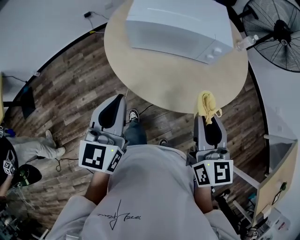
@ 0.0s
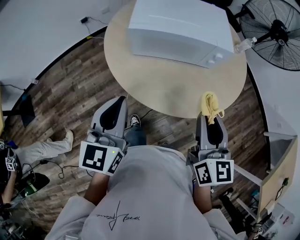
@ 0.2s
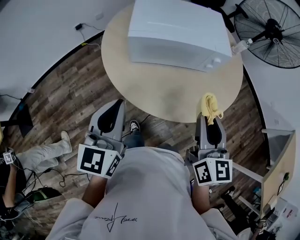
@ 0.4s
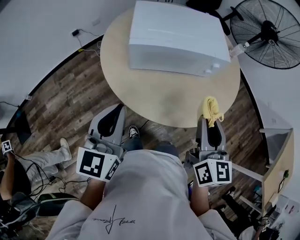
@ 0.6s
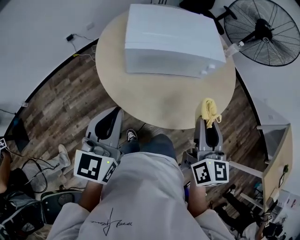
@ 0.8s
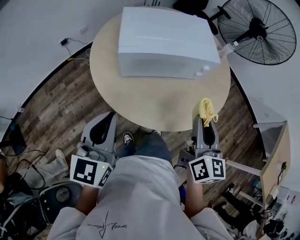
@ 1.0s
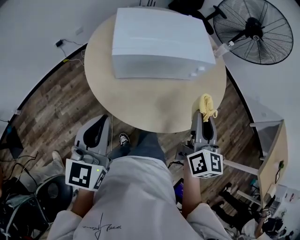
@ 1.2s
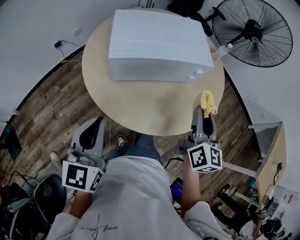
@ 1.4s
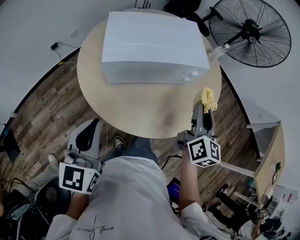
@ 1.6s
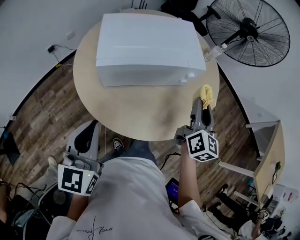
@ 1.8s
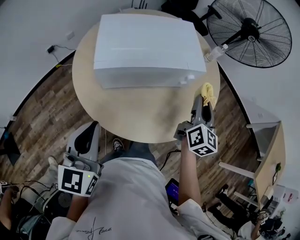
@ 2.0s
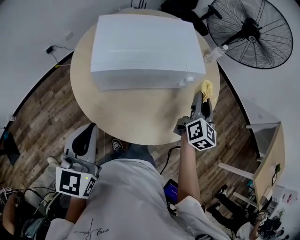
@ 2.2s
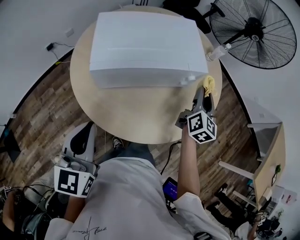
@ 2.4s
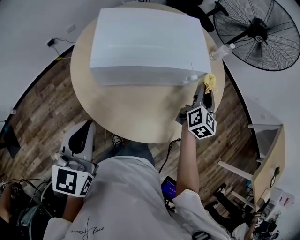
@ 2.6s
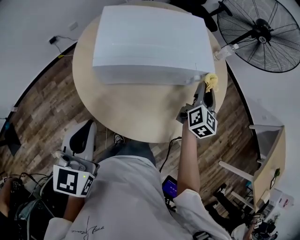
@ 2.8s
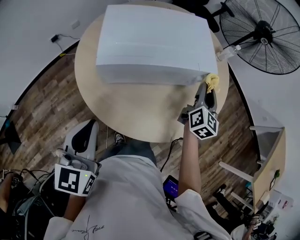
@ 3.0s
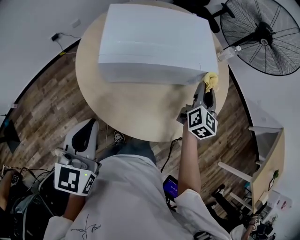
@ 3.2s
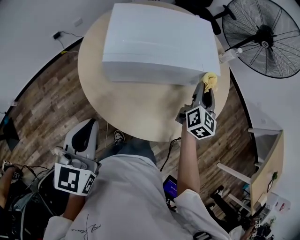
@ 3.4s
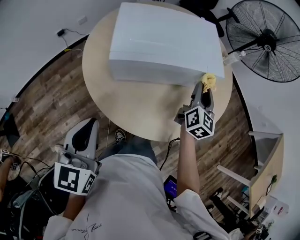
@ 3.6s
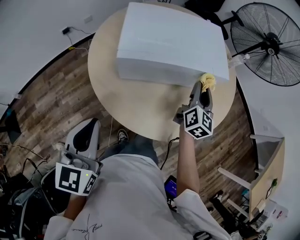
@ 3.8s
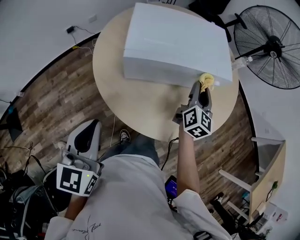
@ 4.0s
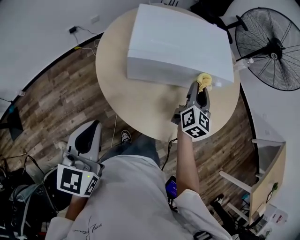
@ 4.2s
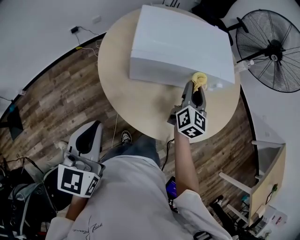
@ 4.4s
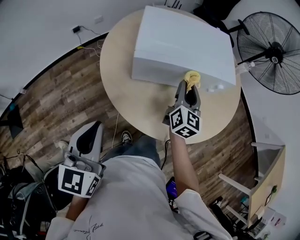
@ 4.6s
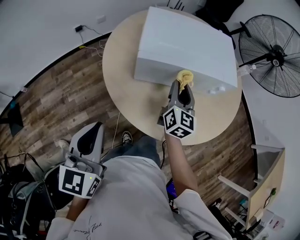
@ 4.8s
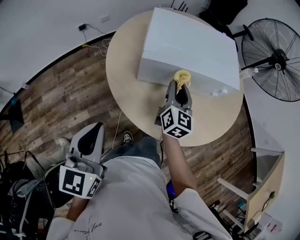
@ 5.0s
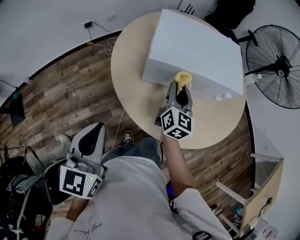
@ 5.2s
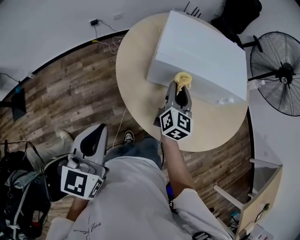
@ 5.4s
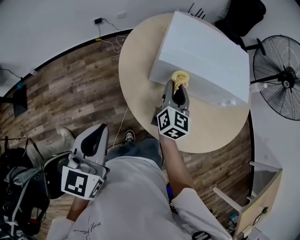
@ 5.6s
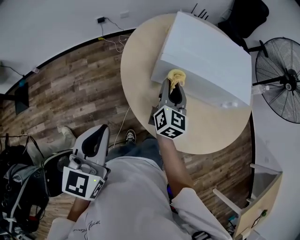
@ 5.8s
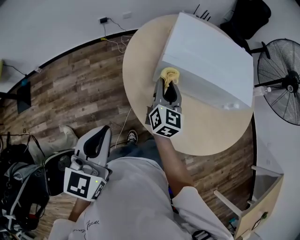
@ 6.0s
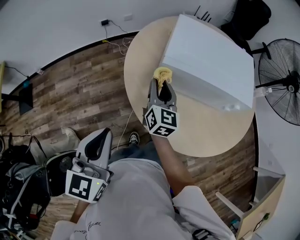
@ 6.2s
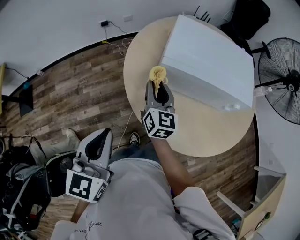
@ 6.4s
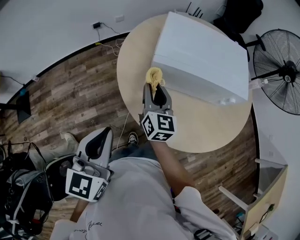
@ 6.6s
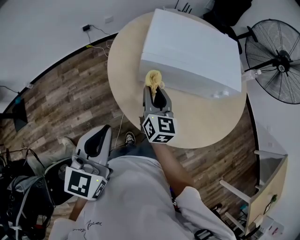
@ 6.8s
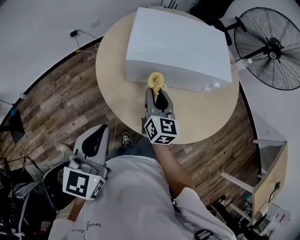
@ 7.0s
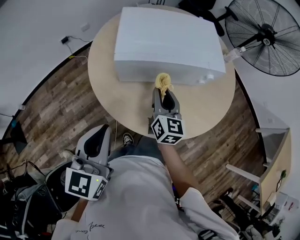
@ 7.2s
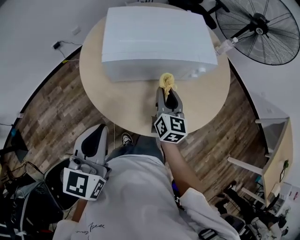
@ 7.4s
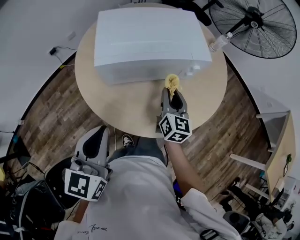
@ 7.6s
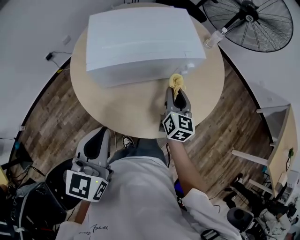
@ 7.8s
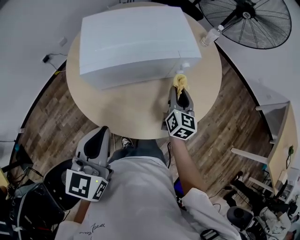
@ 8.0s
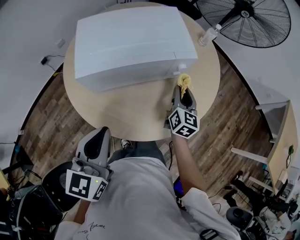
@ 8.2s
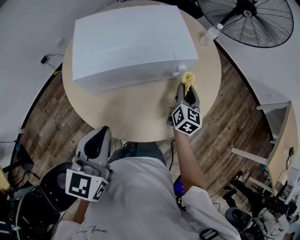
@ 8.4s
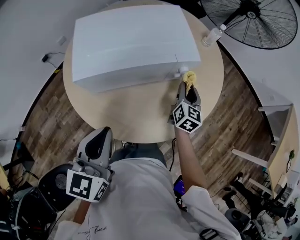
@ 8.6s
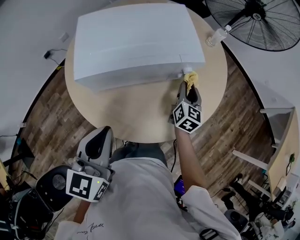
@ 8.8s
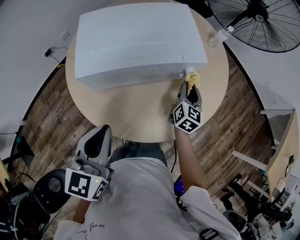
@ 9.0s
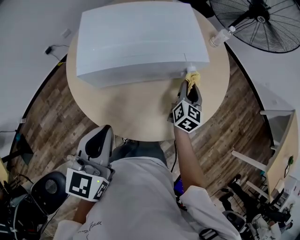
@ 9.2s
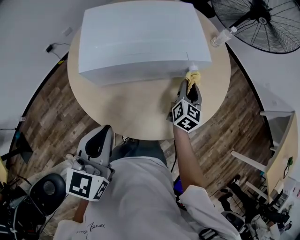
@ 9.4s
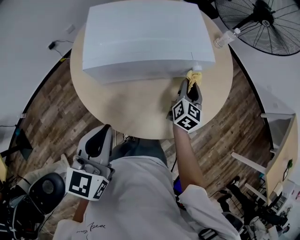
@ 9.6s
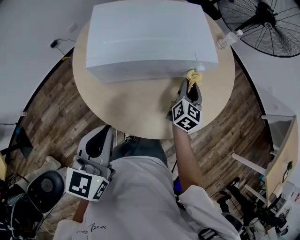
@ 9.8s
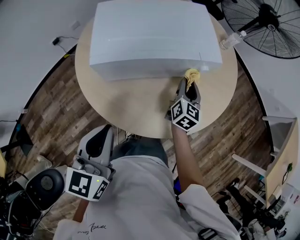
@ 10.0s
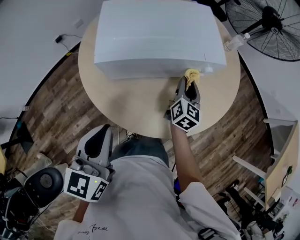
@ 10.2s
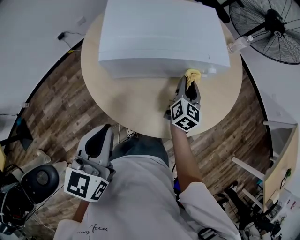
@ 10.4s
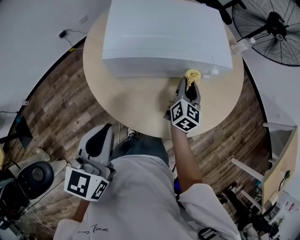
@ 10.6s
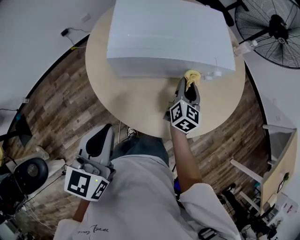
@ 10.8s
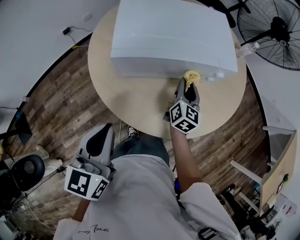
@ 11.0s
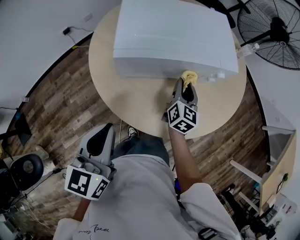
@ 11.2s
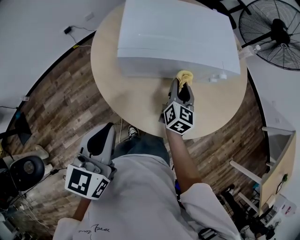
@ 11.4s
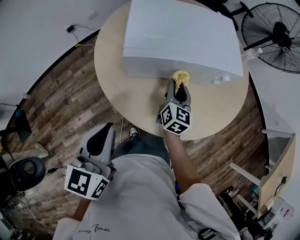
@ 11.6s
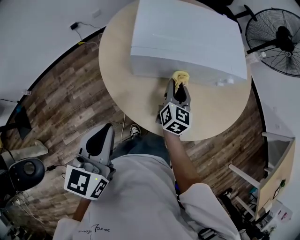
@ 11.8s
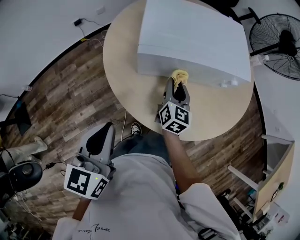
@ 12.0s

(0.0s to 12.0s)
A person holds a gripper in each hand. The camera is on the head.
0.0s - 1.6s: The right gripper heads forward, covering roughly 15 cm, and changes its angle by about 30 degrees; the left gripper heads forward and to the left, covering some 10 cm.
1.6s - 3.0s: The right gripper goes roughly 15 cm forward and downward.
3.0s - 4.4s: The left gripper travels backward and to the left by about 10 cm; the right gripper moves to the left, about 15 cm.
4.4s - 6.0s: The right gripper is displaced to the left by approximately 20 cm, and swivels approximately 20 degrees.
6.0s - 7.6s: The right gripper heads to the right, covering about 25 cm, and swivels some 20 degrees, while the left gripper moves to the right, roughly 15 cm, and changes its angle by some 20 degrees.
7.6s - 9.0s: The right gripper travels to the right, forward and downward by roughly 15 cm, while the left gripper goes approximately 5 cm forward.
9.0s - 10.4s: The right gripper heads to the left, covering some 10 cm. The left gripper shifts by some 5 cm.
10.4s - 12.0s: The right gripper shifts some 15 cm to the left; the left gripper heads to the left, covering roughly 10 cm.

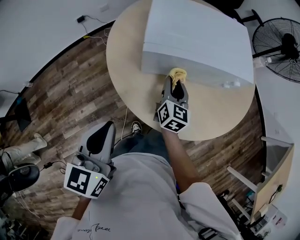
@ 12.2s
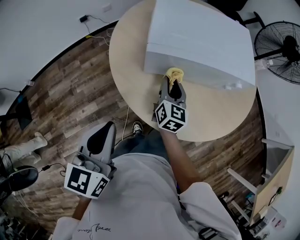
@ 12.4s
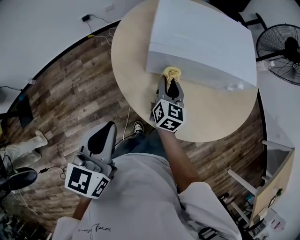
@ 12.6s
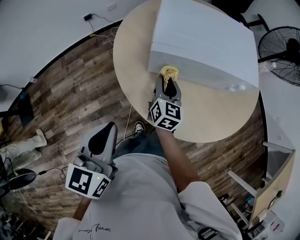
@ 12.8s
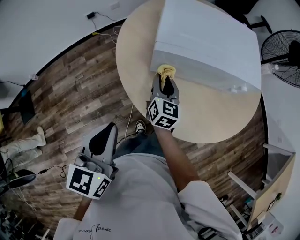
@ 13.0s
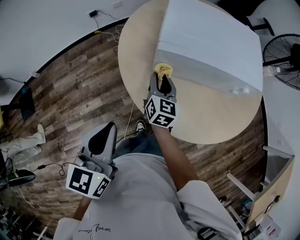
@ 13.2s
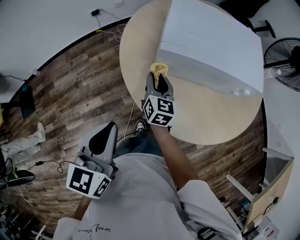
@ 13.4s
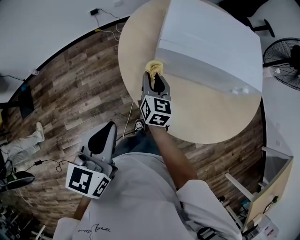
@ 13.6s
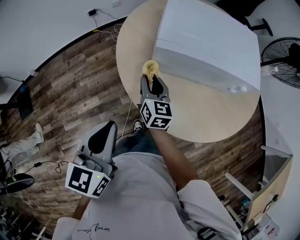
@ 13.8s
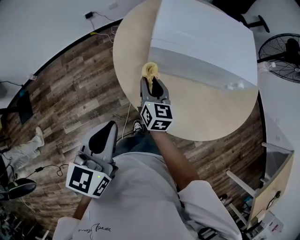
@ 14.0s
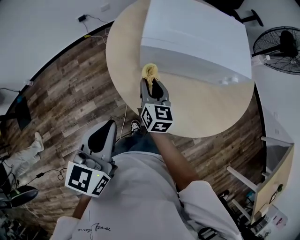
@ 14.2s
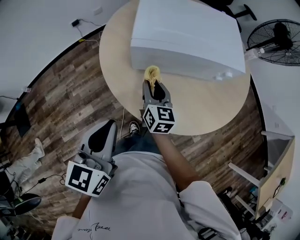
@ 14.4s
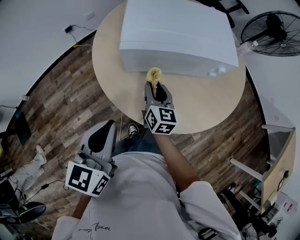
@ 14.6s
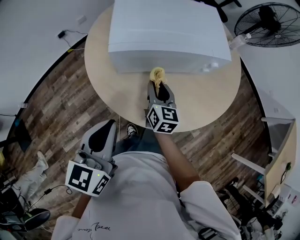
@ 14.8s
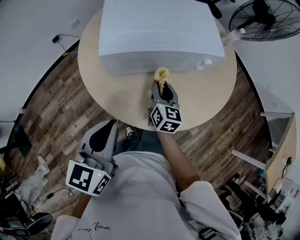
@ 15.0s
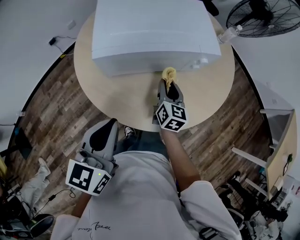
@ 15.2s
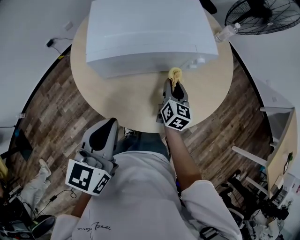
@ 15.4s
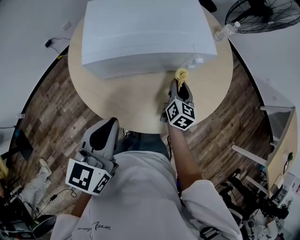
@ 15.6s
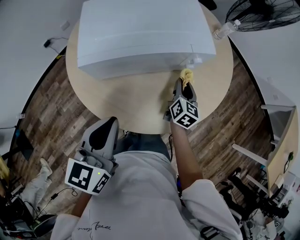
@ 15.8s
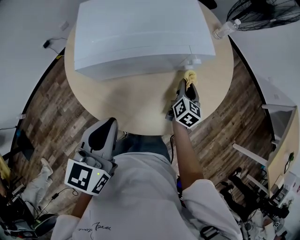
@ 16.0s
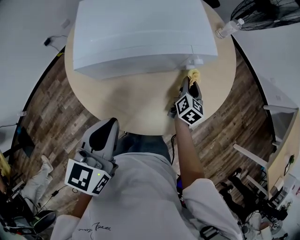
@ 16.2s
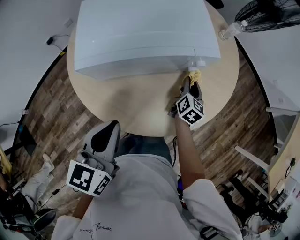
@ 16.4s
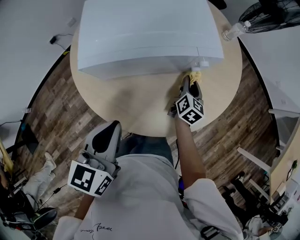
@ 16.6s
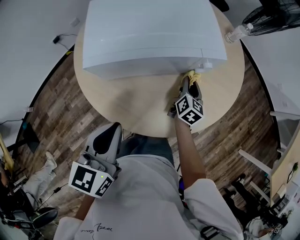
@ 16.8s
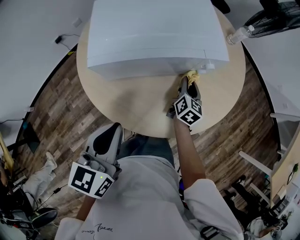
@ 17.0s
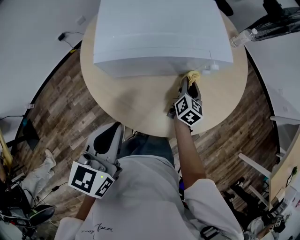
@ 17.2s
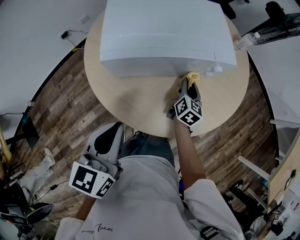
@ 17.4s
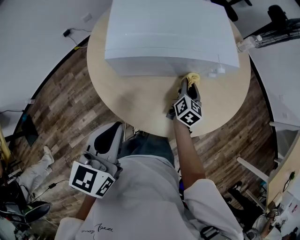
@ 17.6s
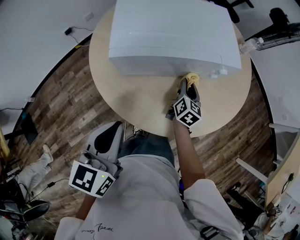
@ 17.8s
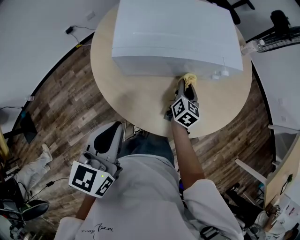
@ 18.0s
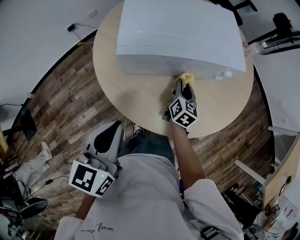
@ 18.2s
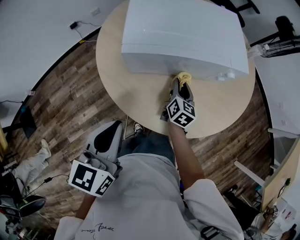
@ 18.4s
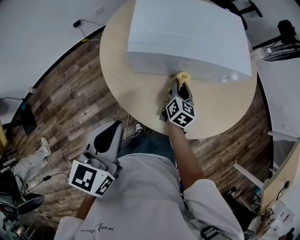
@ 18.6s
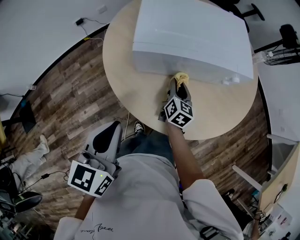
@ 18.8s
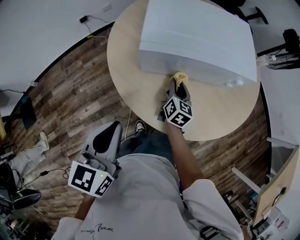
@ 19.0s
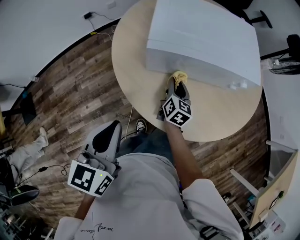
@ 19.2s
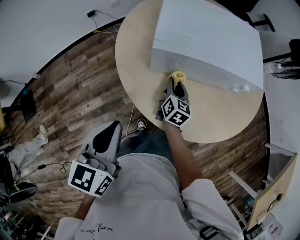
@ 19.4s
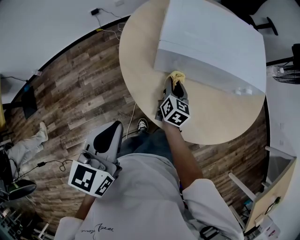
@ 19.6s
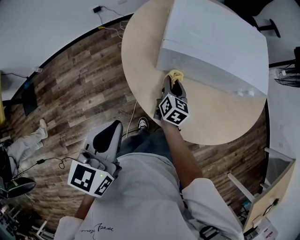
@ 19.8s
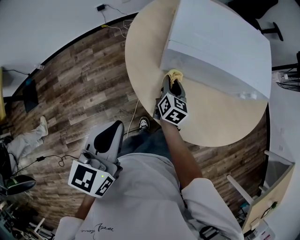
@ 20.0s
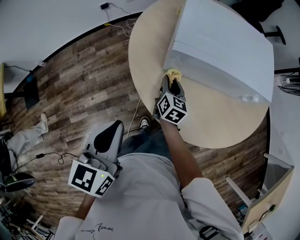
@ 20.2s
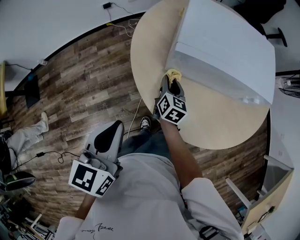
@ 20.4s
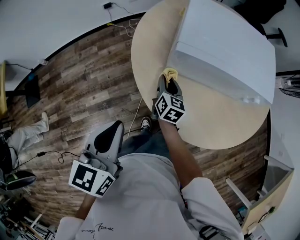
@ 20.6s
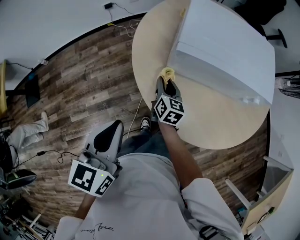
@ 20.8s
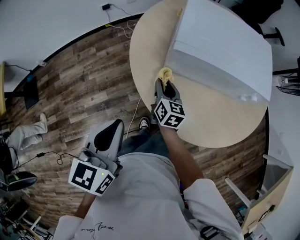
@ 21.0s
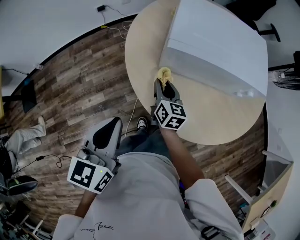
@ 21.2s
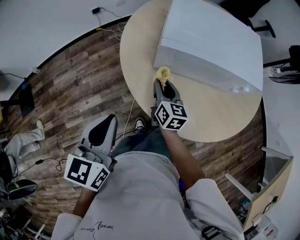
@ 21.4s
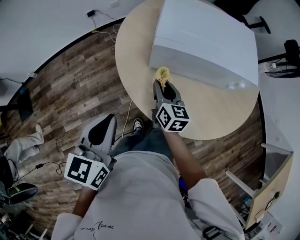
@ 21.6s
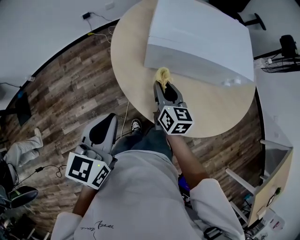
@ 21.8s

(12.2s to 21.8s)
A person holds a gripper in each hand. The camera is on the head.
12.2s - 13.8s: The right gripper travels to the left by roughly 15 cm.
13.8s - 15.4s: The right gripper moves approximately 30 cm, and swivels roughly 30 degrees. The left gripper changes place by some 15 cm, and turns by some 20 degrees.
15.4s - 17.0s: The right gripper heads forward, covering roughly 5 cm.
17.0s - 18.6s: The left gripper goes approximately 10 cm to the left and backward. The right gripper moves to the left, approximately 15 cm.
18.6s - 20.2s: The right gripper shifts approximately 15 cm to the left. Meanwhile the left gripper heads to the left, covering some 10 cm.
20.2s - 21.8s: The right gripper shifts roughly 10 cm upward and backward.

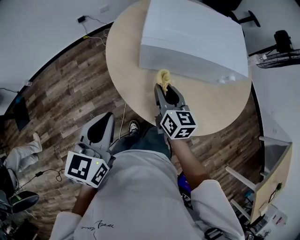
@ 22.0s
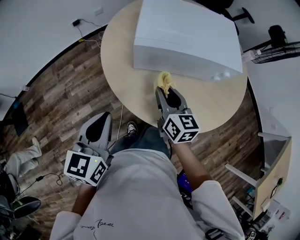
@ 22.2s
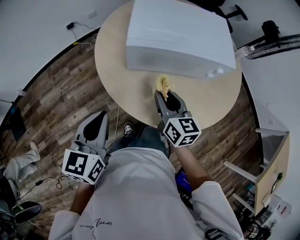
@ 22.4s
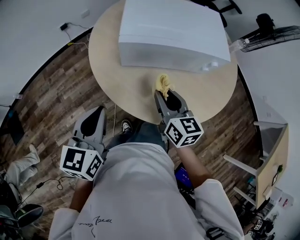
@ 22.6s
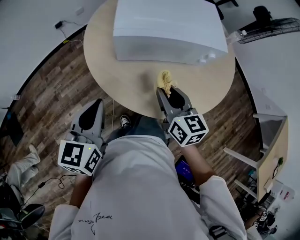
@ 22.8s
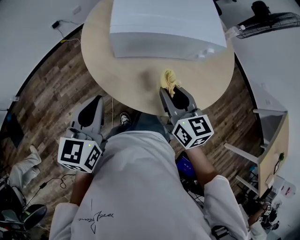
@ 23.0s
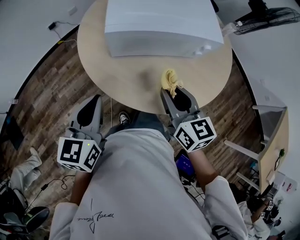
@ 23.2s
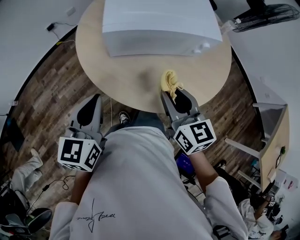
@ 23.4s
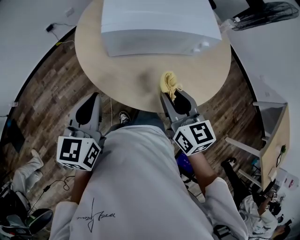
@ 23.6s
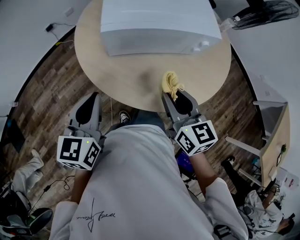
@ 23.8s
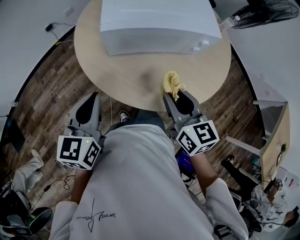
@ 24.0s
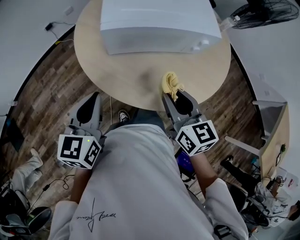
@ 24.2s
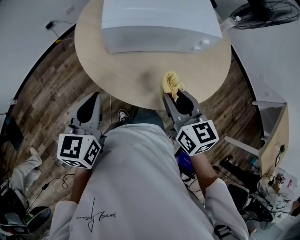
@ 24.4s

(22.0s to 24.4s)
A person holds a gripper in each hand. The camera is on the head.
22.0s - 23.2s: The right gripper shifts roughly 15 cm to the right, backward and upward.
23.2s - 24.4s: The grippers move only a little.
